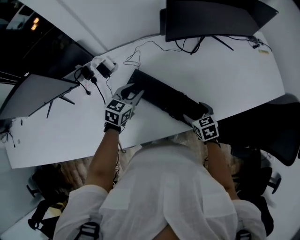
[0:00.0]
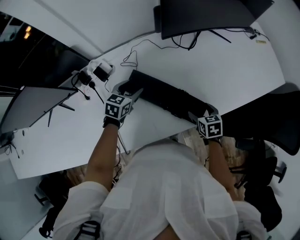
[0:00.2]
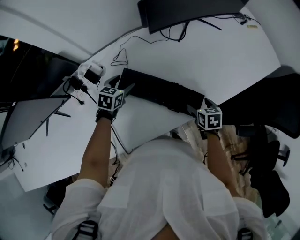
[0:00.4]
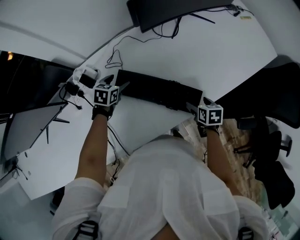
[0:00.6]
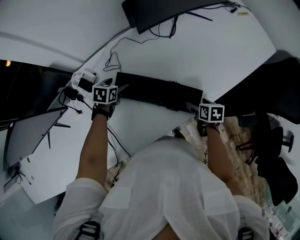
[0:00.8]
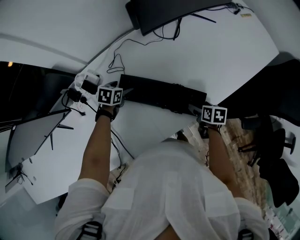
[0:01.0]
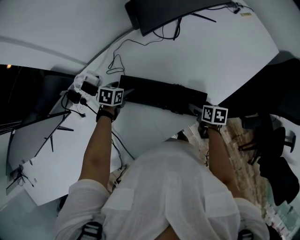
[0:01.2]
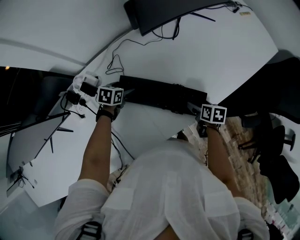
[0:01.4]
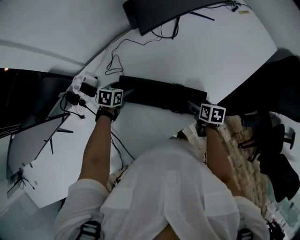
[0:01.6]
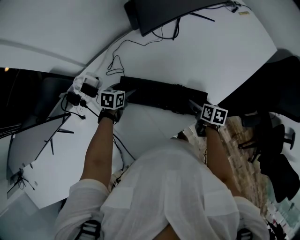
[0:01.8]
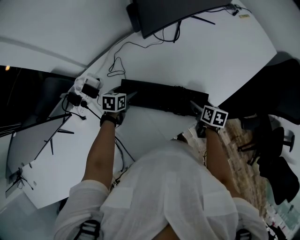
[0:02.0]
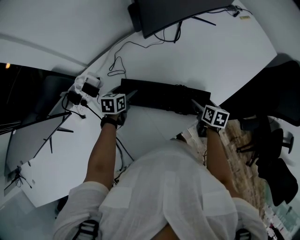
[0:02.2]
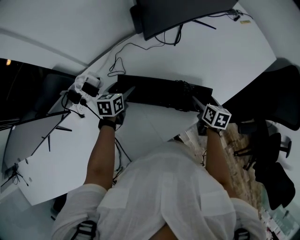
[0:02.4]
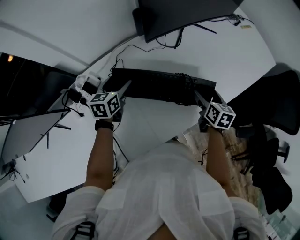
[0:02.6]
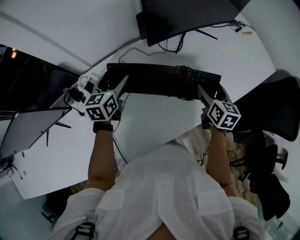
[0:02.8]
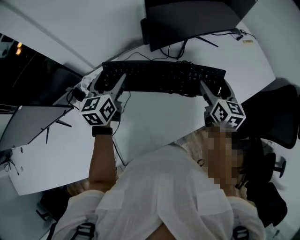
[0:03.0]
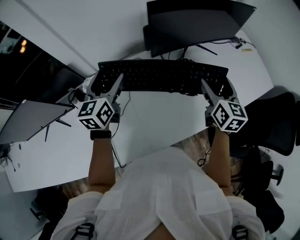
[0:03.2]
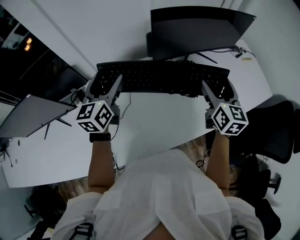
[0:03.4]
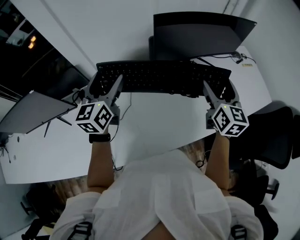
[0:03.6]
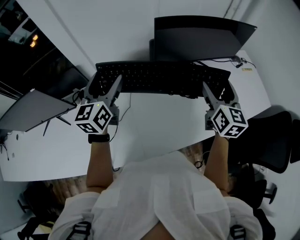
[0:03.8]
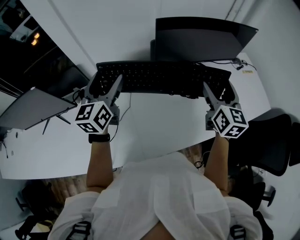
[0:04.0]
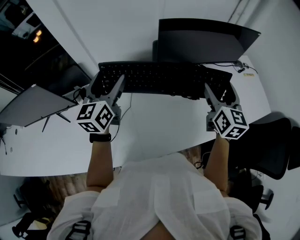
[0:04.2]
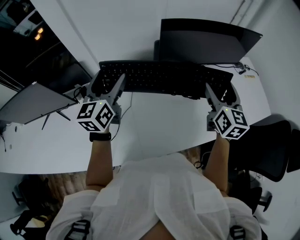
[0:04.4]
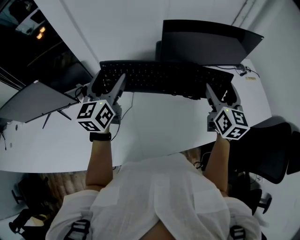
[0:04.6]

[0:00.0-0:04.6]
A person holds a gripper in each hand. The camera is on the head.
0:00.0 to 0:01.6: The right gripper moves downward, approximately 5 cm, and rolls clockwise, seen from behind, by approximately 50 degrees; the left gripper goes about 15 cm downward, changes its angle by roughly 30 degrees, and opens up.
0:01.6 to 0:03.0: The left gripper shifts some 30 cm upward, and tilts its fingers approximately 40 degrees upward; the right gripper heads upward and forward, covering some 30 cm, and points its fingers roughly 40 degrees further upward.
0:03.0 to 0:04.6: The grippers both shift upward by approximately 15 cm. The left gripper changes its angle by roughly 20 degrees.
